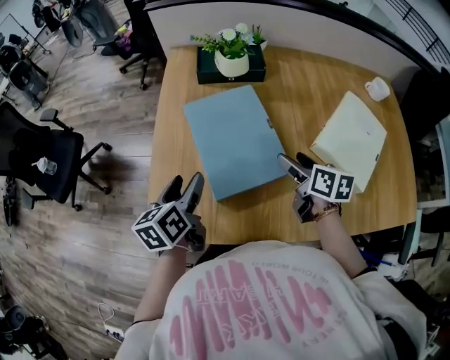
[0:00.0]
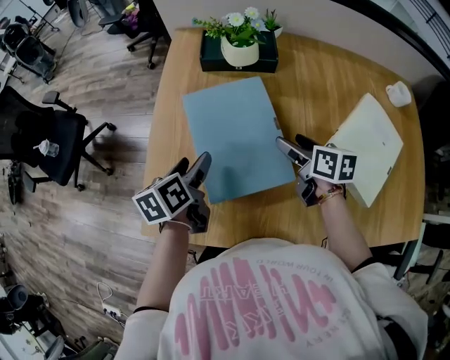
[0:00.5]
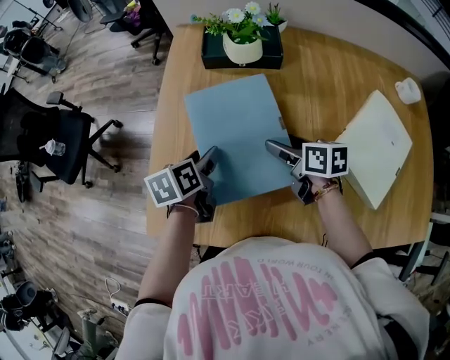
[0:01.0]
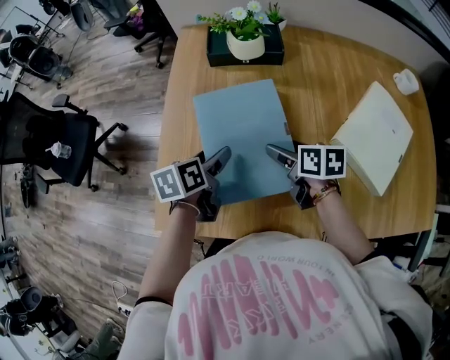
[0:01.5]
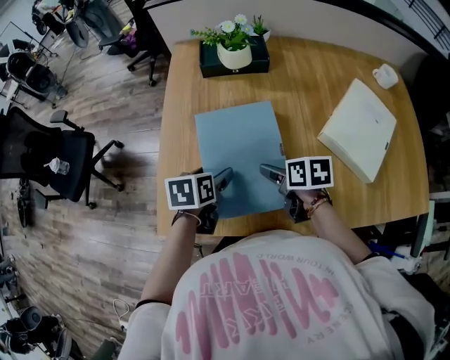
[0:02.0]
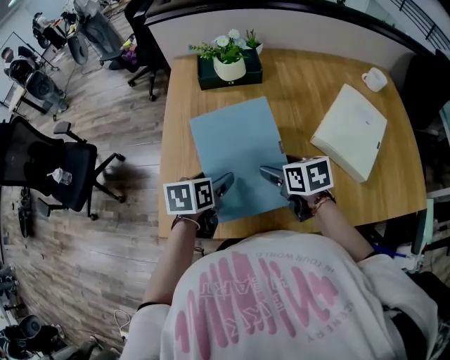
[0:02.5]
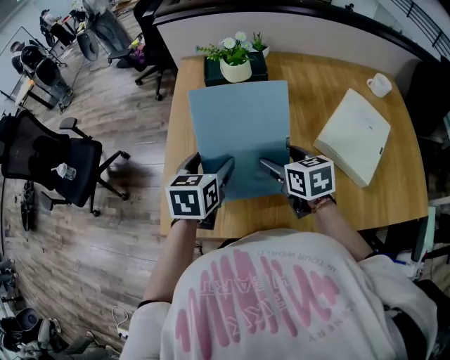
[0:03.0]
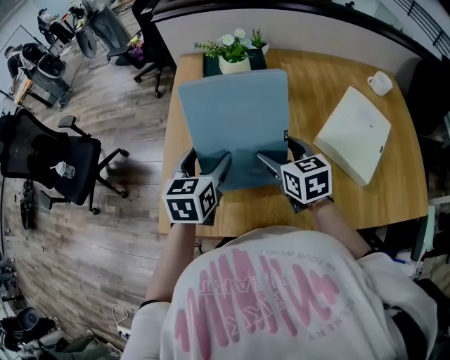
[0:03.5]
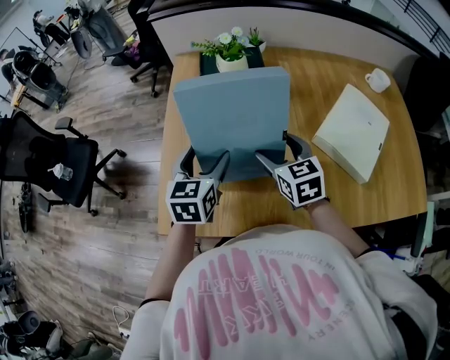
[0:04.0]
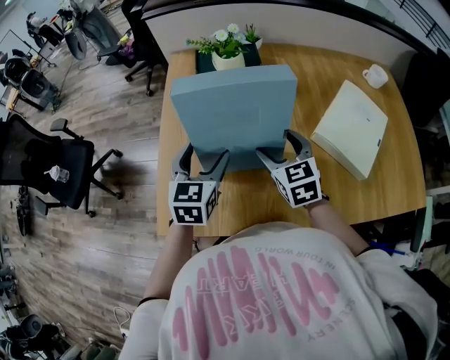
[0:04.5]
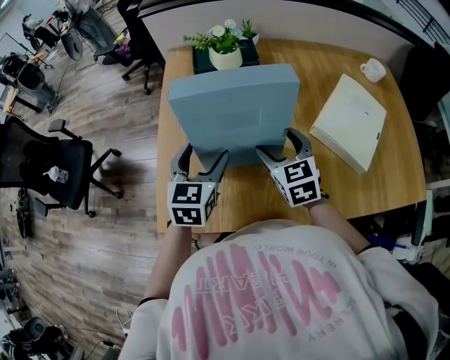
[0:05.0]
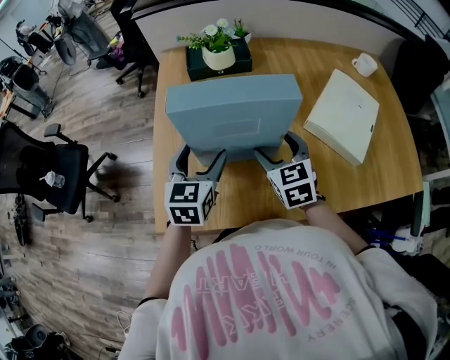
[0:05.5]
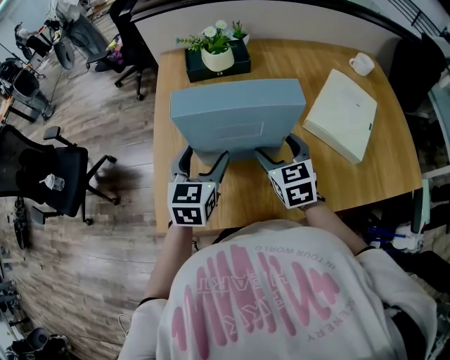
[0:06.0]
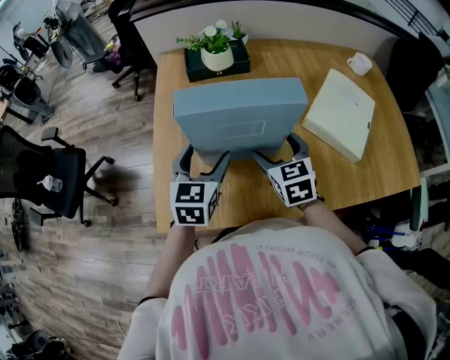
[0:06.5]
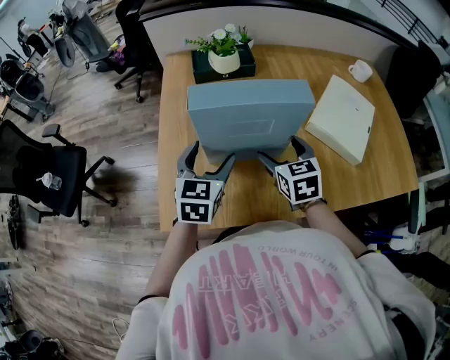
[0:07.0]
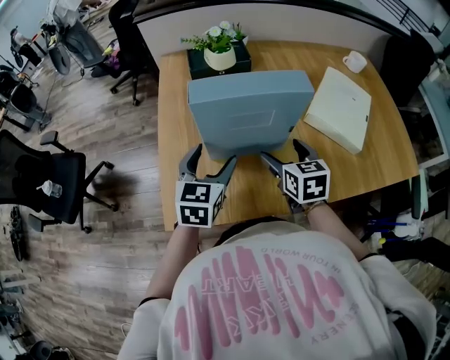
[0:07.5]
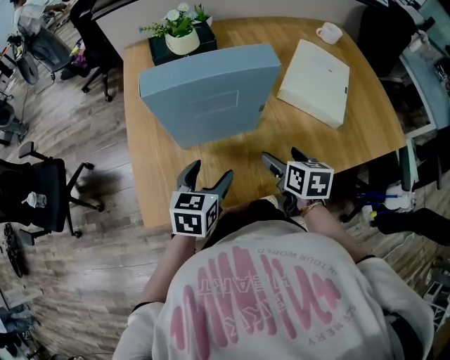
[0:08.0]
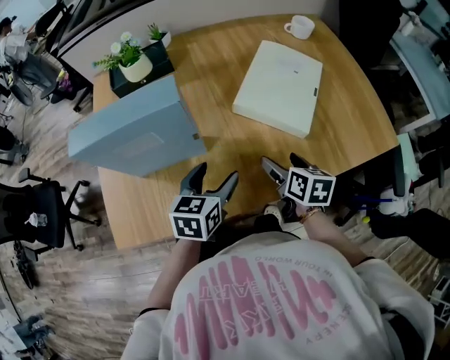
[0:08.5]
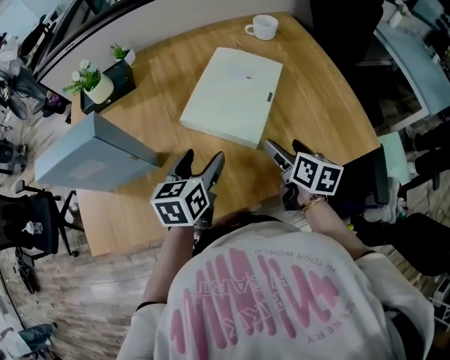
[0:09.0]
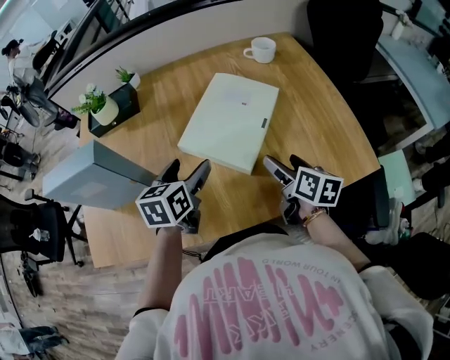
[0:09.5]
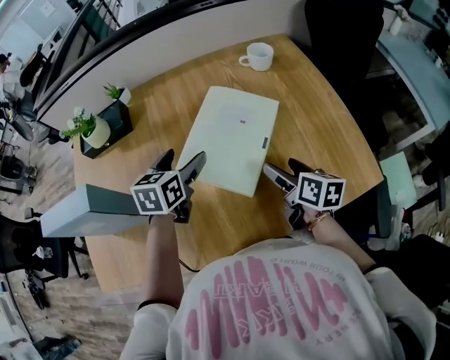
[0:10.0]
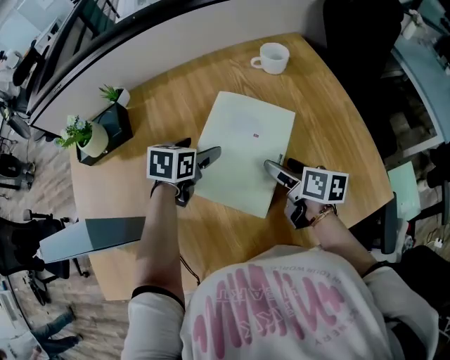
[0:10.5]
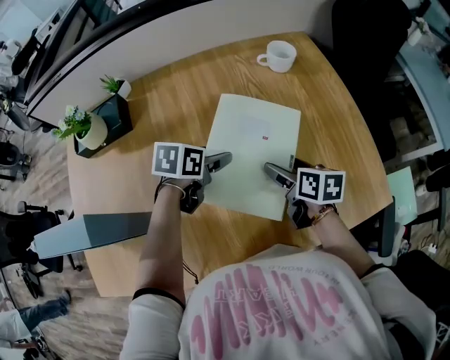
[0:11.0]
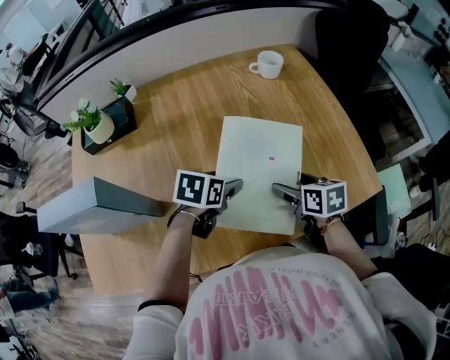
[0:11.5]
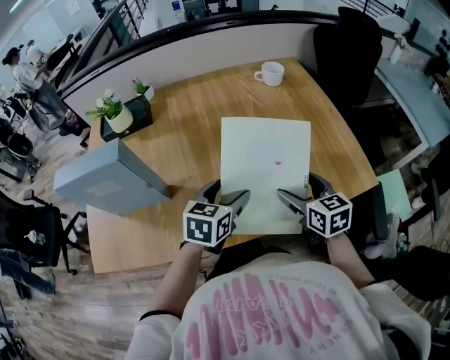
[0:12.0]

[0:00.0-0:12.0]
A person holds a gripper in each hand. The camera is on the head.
0:00.0 to 0:02.0: The left gripper heads downward and to the right, covering roughly 10 cm, travels forward and back again, approximately 10 cm each way, and swivels about 30 degrees; the right gripper heads to the left and downward, covering about 10 cm, and moves roughly 10 cm forward and comes back.
0:02.0 to 0:04.0: The grippers both shift upward by some 10 cm. The right gripper changes its angle by some 40 degrees. Meanwhile the left gripper changes its angle by about 40 degrees.
0:04.0 to 0:06.0: There are only small adjustments of the grippers.
0:06.0 to 0:08.0: The left gripper goes about 15 cm backward, downward and to the right, and turns by approximately 20 degrees, while the right gripper heads backward, to the right and downward, covering some 15 cm, and rotates roughly 40 degrees.
0:08.0 to 0:10.0: The right gripper moves to the right and forward, some 40 cm. Meanwhile the left gripper travels forward and to the right by roughly 40 cm.
0:10.0 to 0:12.0: The right gripper moves backward, roughly 10 cm, and rotates about 30 degrees. The left gripper moves backward and to the right, roughly 15 cm.

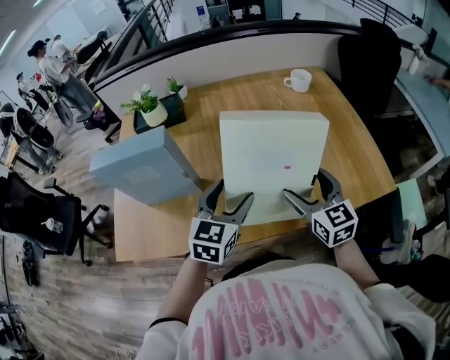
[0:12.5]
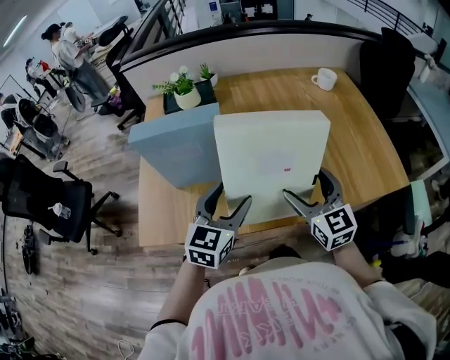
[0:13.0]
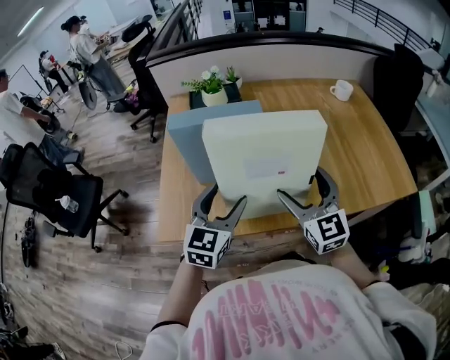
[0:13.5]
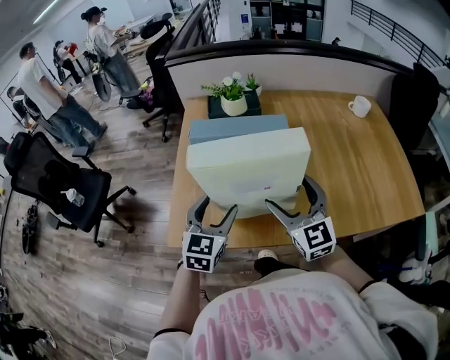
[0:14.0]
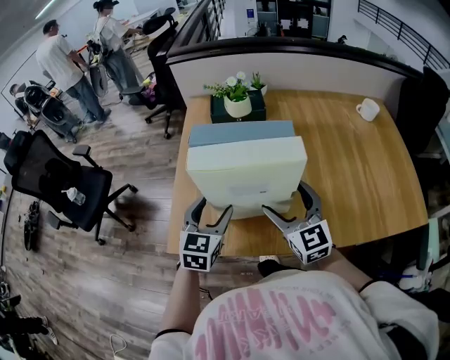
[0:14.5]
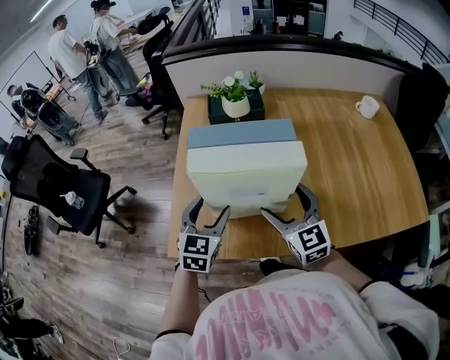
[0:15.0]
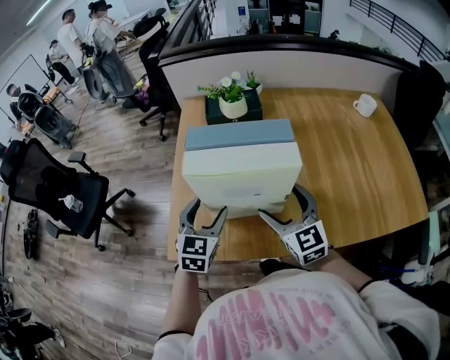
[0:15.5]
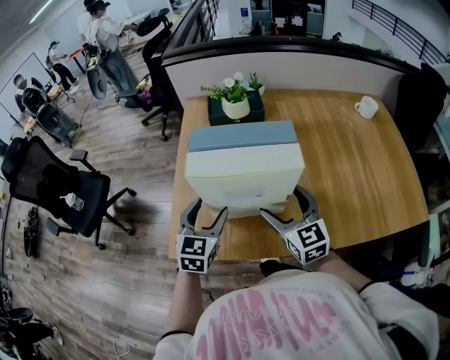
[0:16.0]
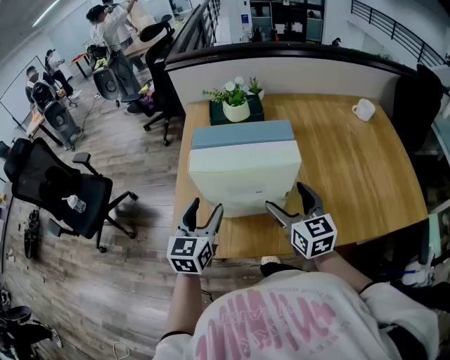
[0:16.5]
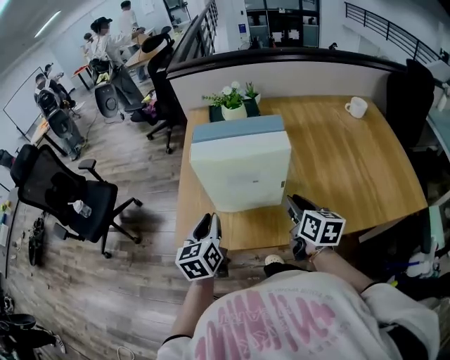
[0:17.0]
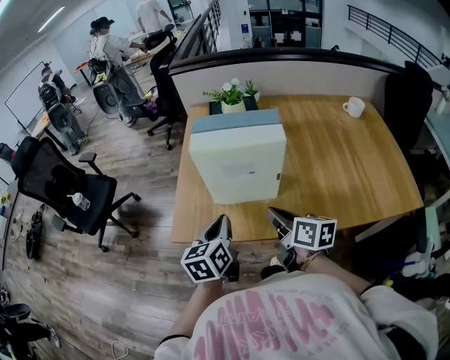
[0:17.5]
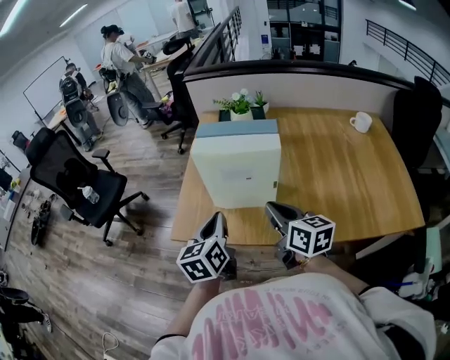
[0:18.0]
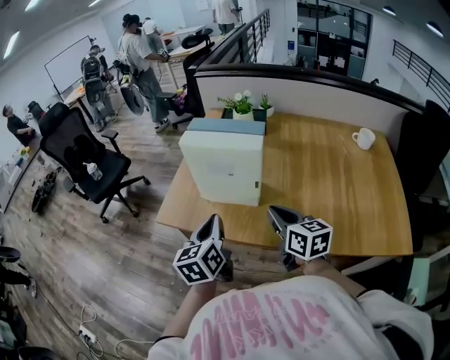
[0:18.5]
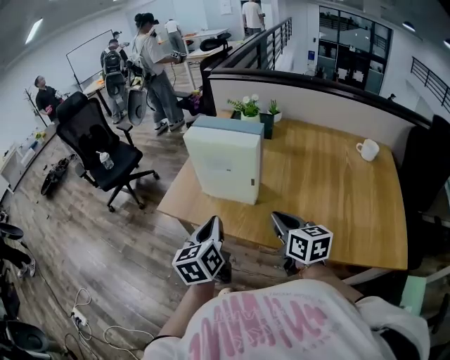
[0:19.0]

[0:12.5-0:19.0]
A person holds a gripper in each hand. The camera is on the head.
0:12.5 to 0:14.5: The grippers both shift to the left by some 35 cm.
0:14.5 to 0:17.0: The right gripper shifts approximately 5 cm to the right, rotates around the line of its fingers by approximately 40 degrees, clockwise from behind, and closes; the left gripper is displaced backward by roughly 5 cm, changes its angle by about 30 degrees, and closes its fingers.
0:17.0 to 0:19.0: The right gripper moves backward, about 10 cm, travels to the left and back again, approximately 10 cm each way, and changes its angle by approximately 30 degrees; the left gripper heads backward, to the right and upward, covering some 20 cm.

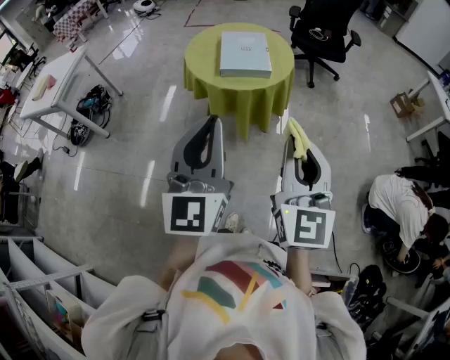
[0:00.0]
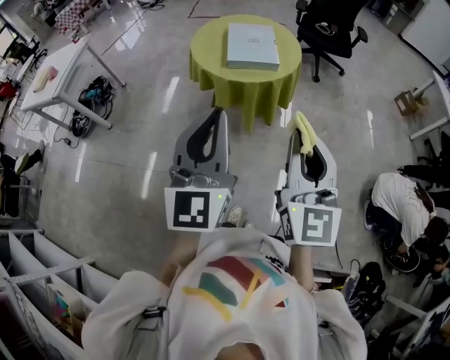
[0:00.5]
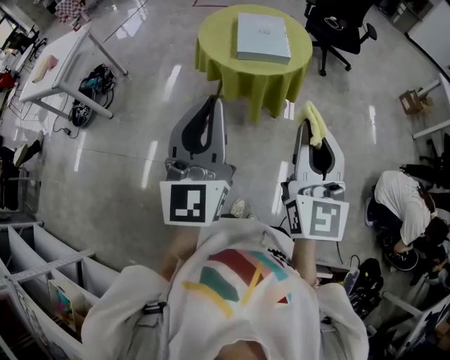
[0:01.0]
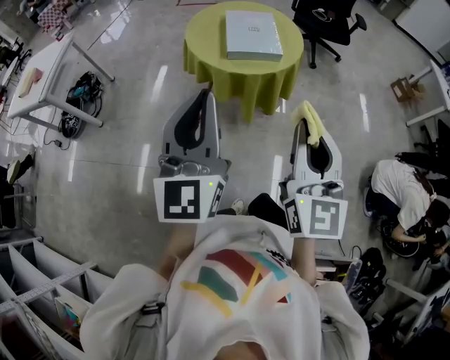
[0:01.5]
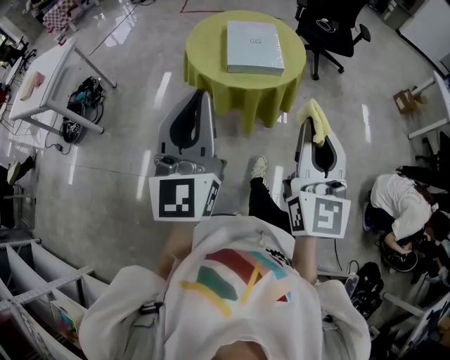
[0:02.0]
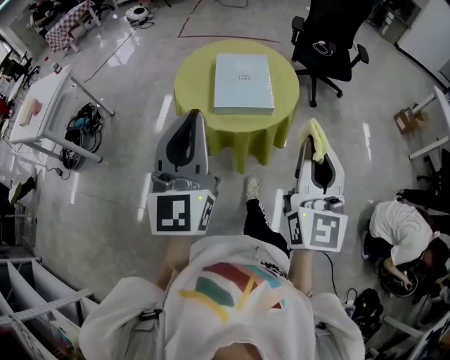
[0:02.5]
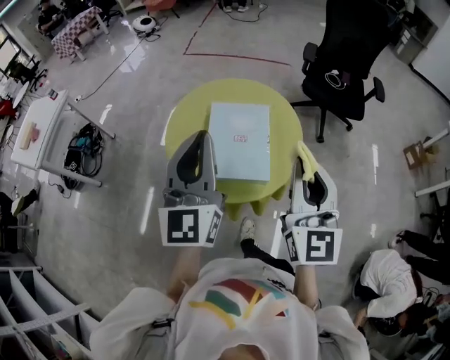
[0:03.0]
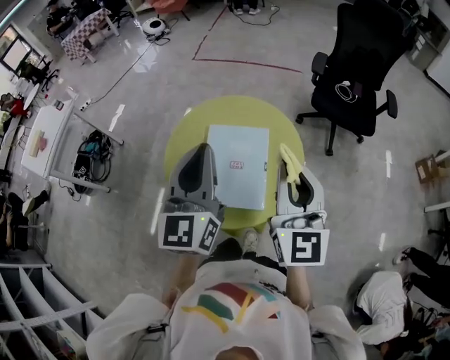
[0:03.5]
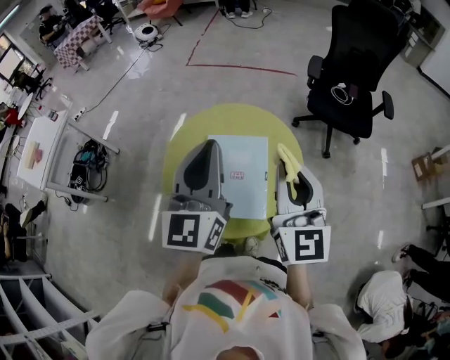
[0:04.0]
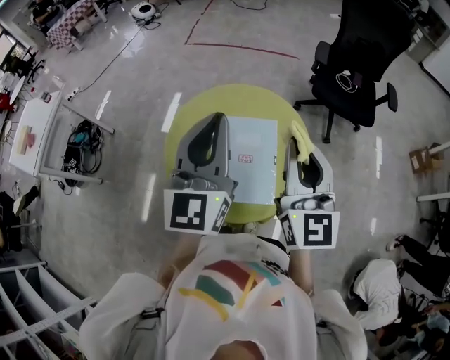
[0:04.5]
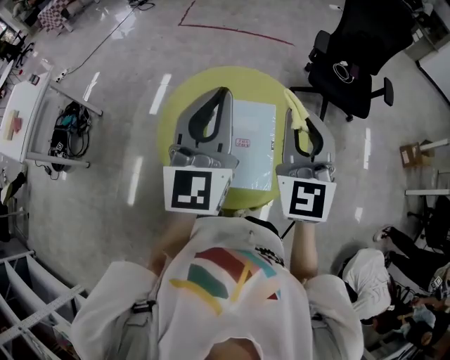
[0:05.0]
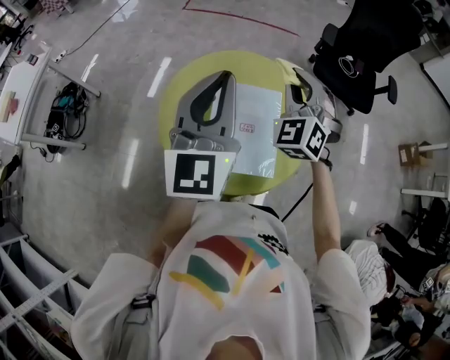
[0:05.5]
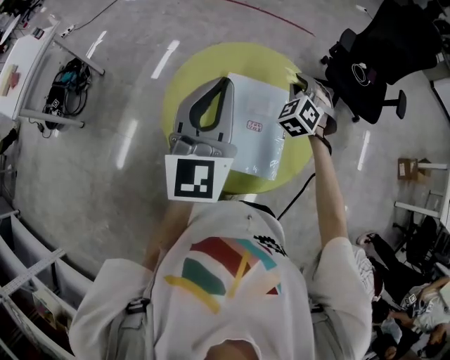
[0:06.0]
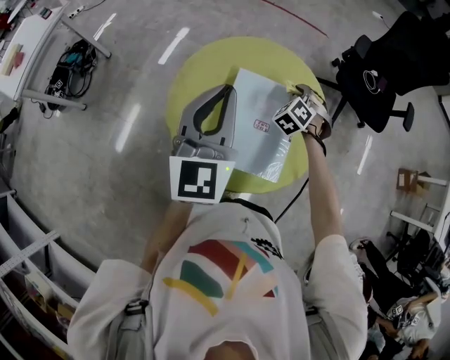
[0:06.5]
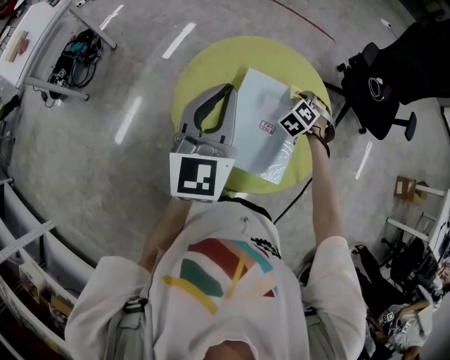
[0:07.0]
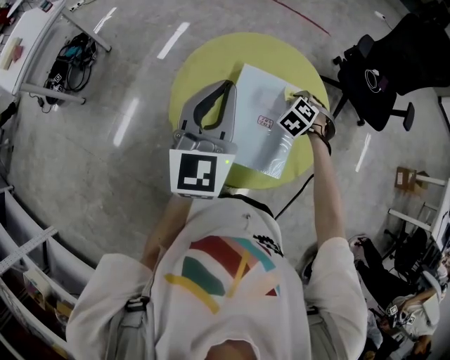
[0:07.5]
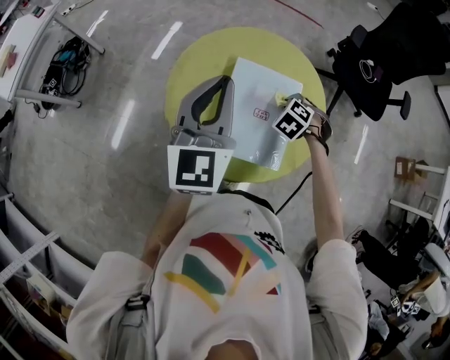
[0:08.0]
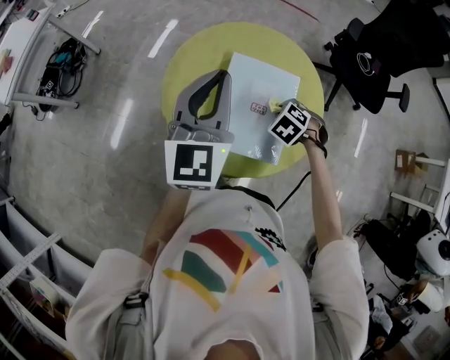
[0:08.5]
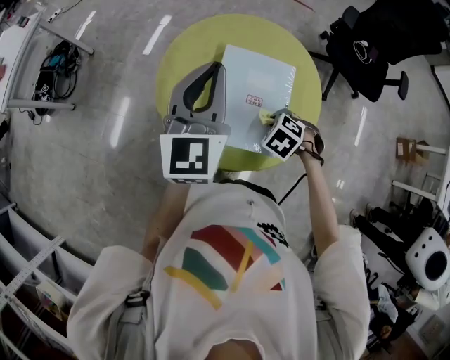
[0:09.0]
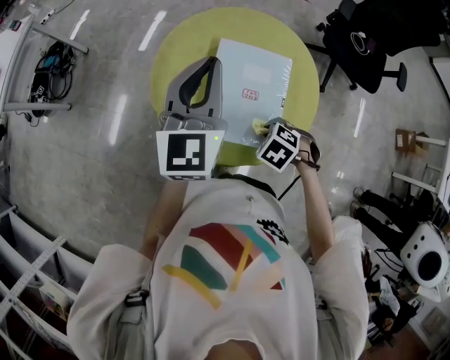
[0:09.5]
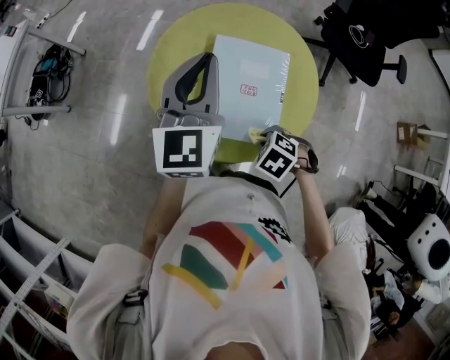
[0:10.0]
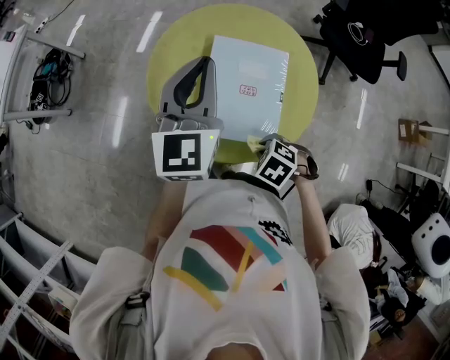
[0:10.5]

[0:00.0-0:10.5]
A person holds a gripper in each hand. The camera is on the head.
0:00.0 to 0:02.0: The right gripper moves forward, roughly 10 cm. The left gripper is displaced forward and to the left by approximately 15 cm.
0:02.0 to 0:04.0: The two grippers travel together, forward, some 50 cm.
0:04.0 to 0:06.5: The right gripper is displaced downward and forward by roughly 40 cm, and points its fingers roughly 50 degrees further downward. Meanwhile the left gripper shifts about 15 cm to the left and downward.
0:06.5 to 0:08.5: The right gripper shifts by roughly 15 cm, and changes its angle by some 30 degrees.
0:08.5 to 0:10.5: The right gripper changes place by roughly 20 cm.
